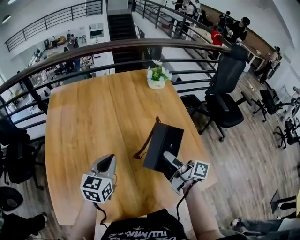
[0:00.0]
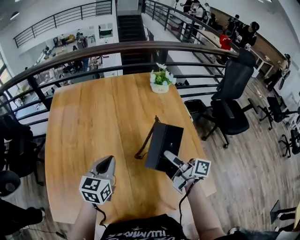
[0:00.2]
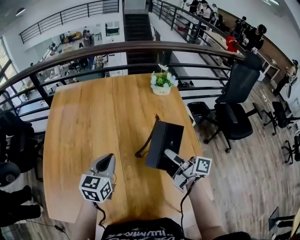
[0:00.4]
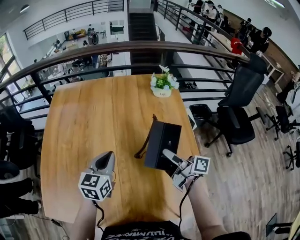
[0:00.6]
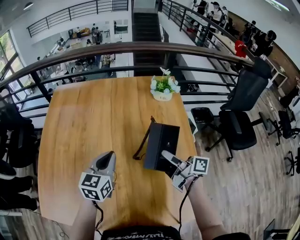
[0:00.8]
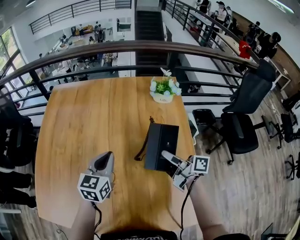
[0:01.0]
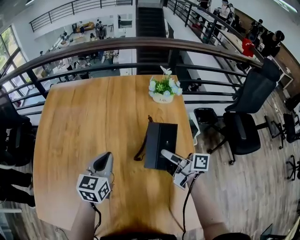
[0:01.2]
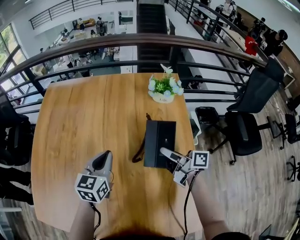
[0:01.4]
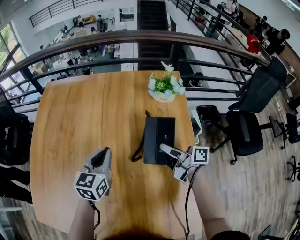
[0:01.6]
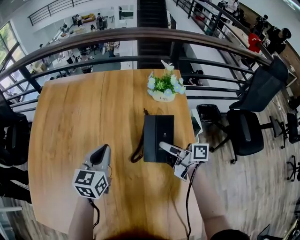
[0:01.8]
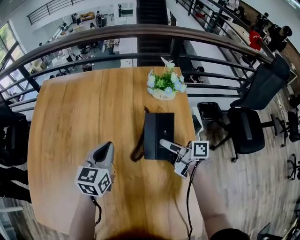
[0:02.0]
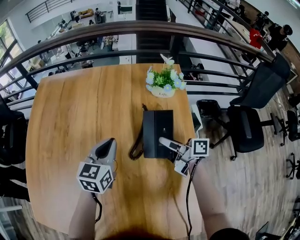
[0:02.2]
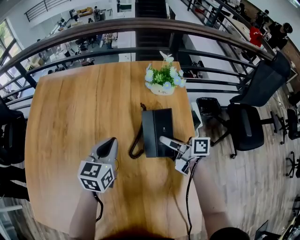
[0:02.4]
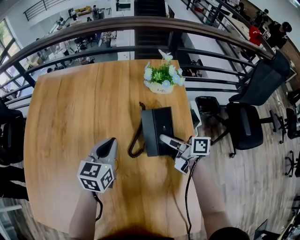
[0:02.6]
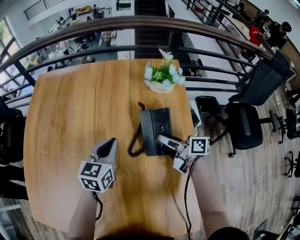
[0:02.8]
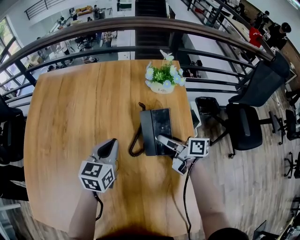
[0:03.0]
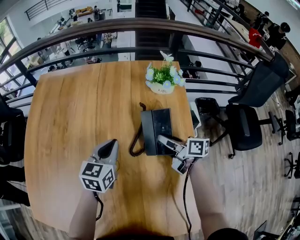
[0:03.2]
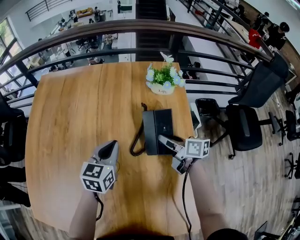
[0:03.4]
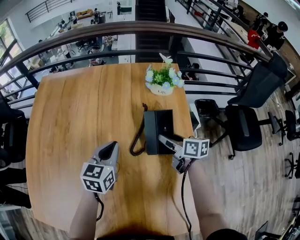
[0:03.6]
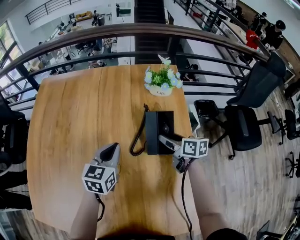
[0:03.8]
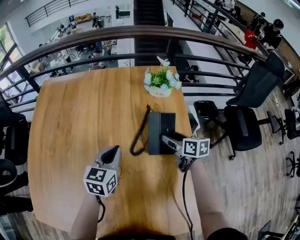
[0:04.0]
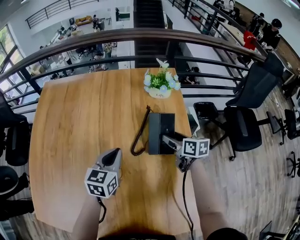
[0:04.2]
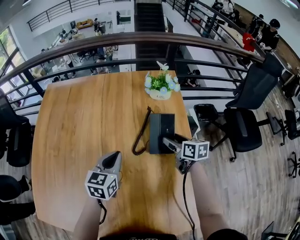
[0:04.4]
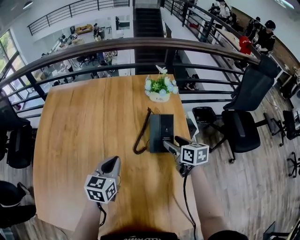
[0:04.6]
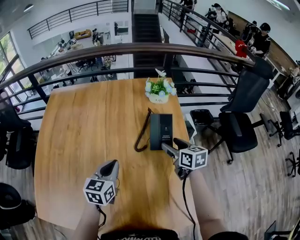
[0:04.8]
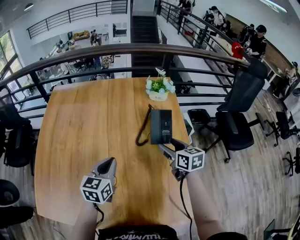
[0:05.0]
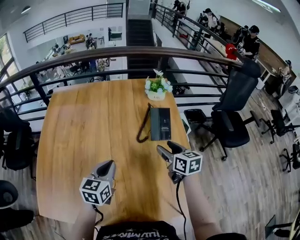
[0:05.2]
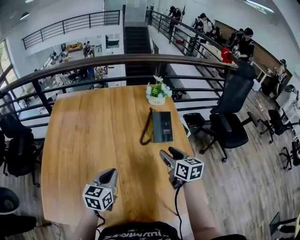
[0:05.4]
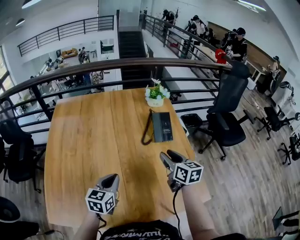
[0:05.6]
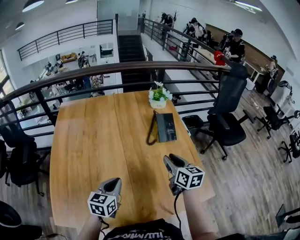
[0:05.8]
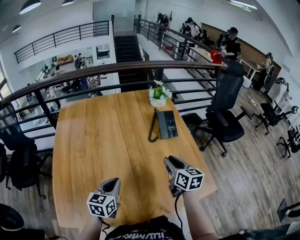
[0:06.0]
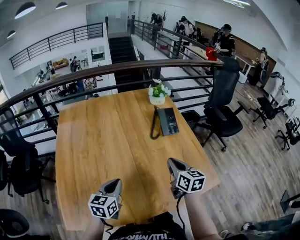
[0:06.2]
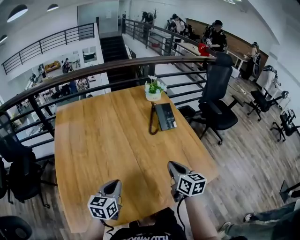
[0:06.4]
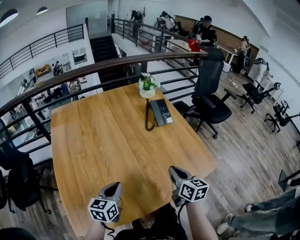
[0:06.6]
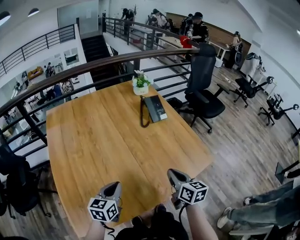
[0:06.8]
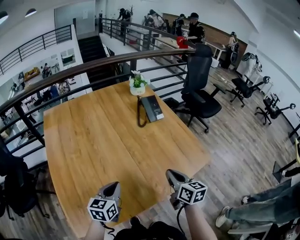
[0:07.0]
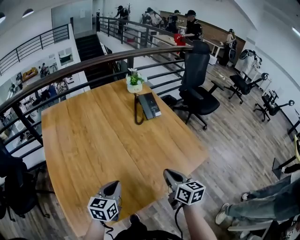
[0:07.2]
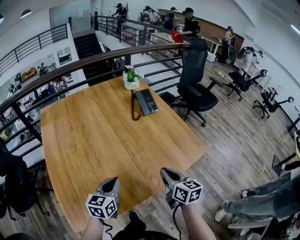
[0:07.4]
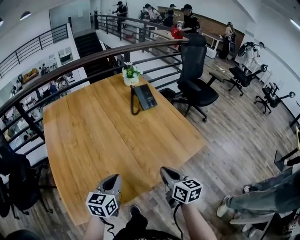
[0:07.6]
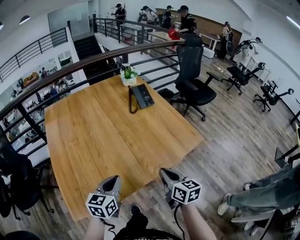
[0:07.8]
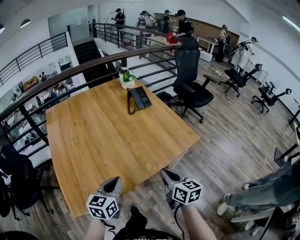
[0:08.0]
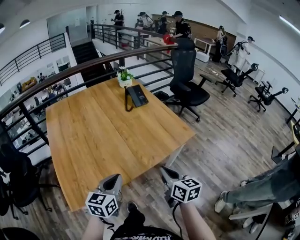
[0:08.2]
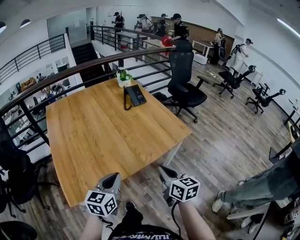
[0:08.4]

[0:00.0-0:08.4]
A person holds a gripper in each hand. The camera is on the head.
0:00.0 to 0:01.4: The two grippers go approximately 20 cm forward and to the right. The right gripper changes its angle by some 30 degrees.
0:01.4 to 0:02.8: The right gripper shifts some 5 cm forward. The left gripper is displaced to the right by about 5 cm.
0:02.8 to 0:04.2: The left gripper shifts by about 5 cm. The right gripper shifts by about 5 cm, turns by approximately 30 degrees, and opens its fingers.
0:04.2 to 0:05.6: The right gripper is displaced backward, upward and to the left by approximately 25 cm, changes its angle by roughly 20 degrees, and closes, while the left gripper is displaced backward and to the left by approximately 25 cm.
0:05.6 to 0:07.0: The right gripper shifts roughly 25 cm backward, turns by approximately 20 degrees, and closes; the left gripper is displaced backward and to the left by about 15 cm.
0:07.0 to 0:08.4: The right gripper goes approximately 20 cm backward. The left gripper heads backward, upward and to the right, covering some 20 cm.

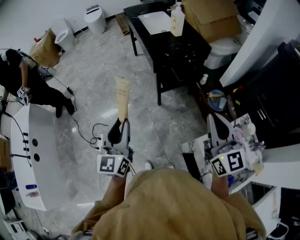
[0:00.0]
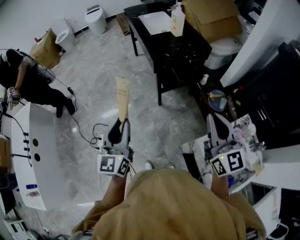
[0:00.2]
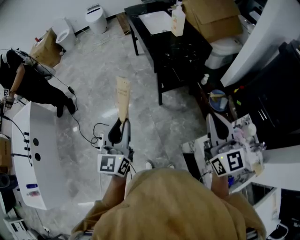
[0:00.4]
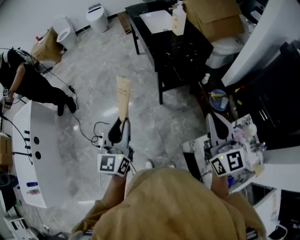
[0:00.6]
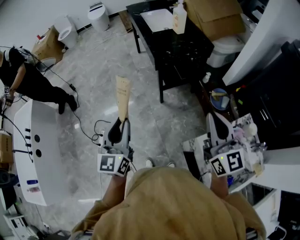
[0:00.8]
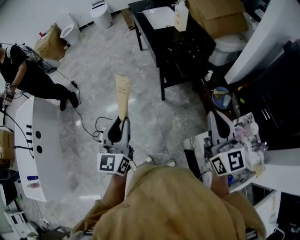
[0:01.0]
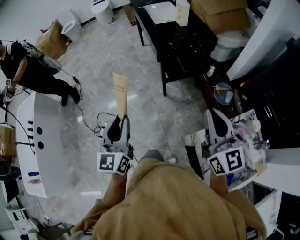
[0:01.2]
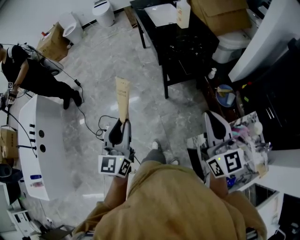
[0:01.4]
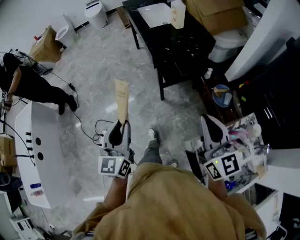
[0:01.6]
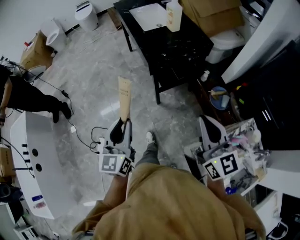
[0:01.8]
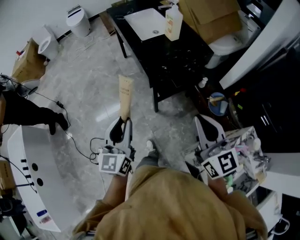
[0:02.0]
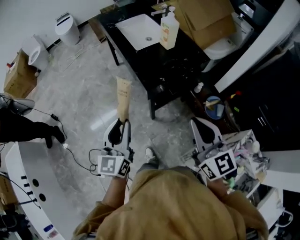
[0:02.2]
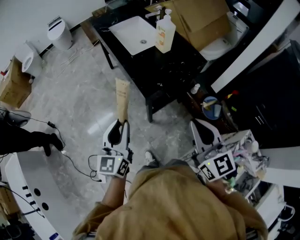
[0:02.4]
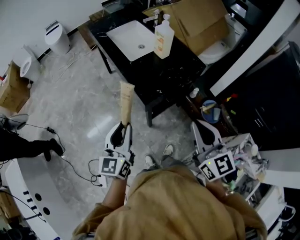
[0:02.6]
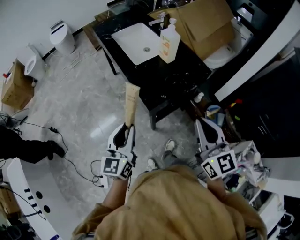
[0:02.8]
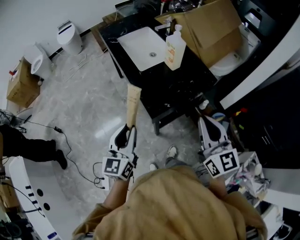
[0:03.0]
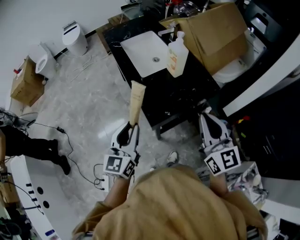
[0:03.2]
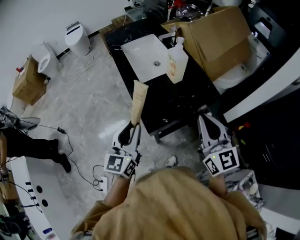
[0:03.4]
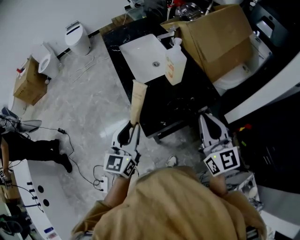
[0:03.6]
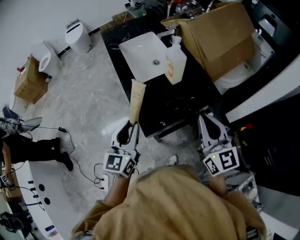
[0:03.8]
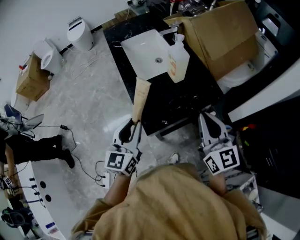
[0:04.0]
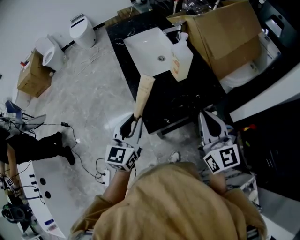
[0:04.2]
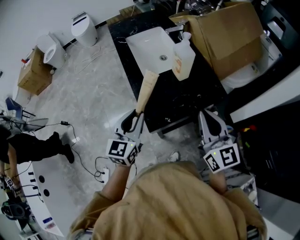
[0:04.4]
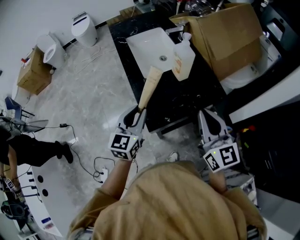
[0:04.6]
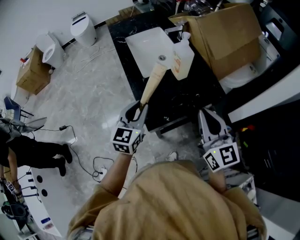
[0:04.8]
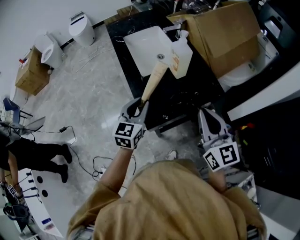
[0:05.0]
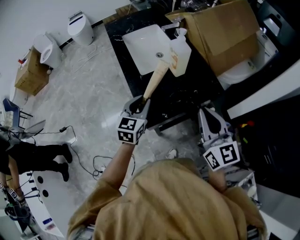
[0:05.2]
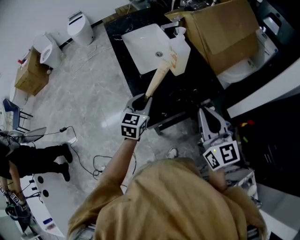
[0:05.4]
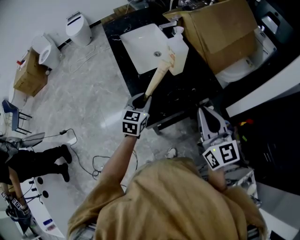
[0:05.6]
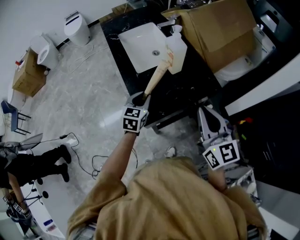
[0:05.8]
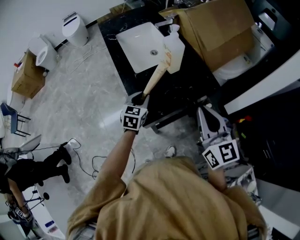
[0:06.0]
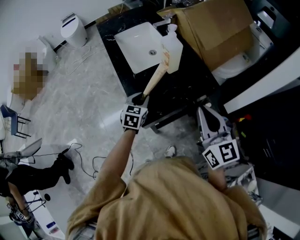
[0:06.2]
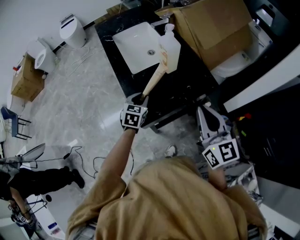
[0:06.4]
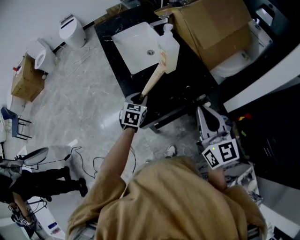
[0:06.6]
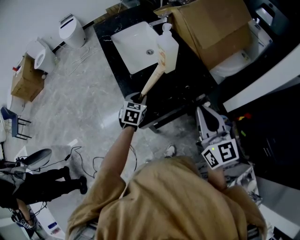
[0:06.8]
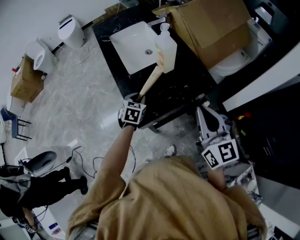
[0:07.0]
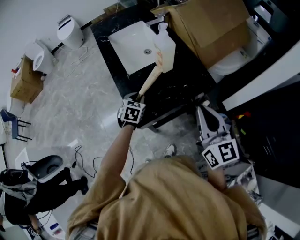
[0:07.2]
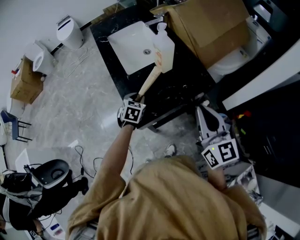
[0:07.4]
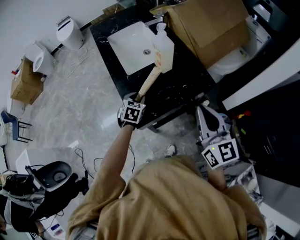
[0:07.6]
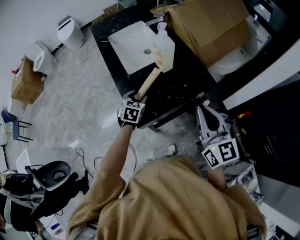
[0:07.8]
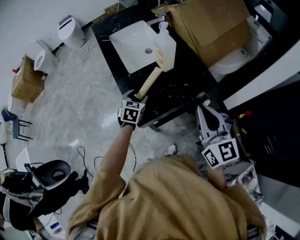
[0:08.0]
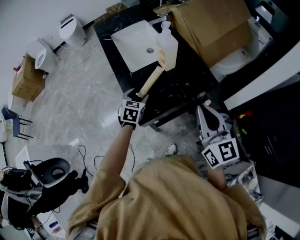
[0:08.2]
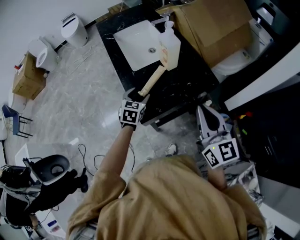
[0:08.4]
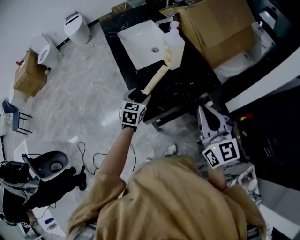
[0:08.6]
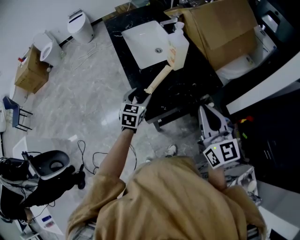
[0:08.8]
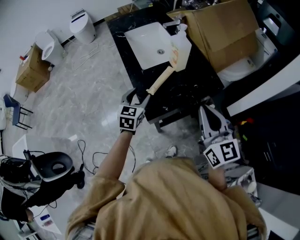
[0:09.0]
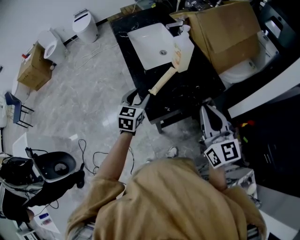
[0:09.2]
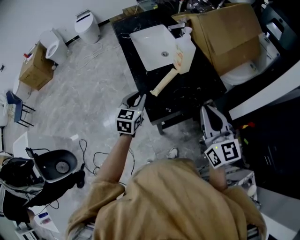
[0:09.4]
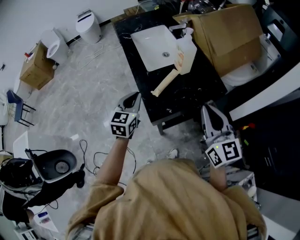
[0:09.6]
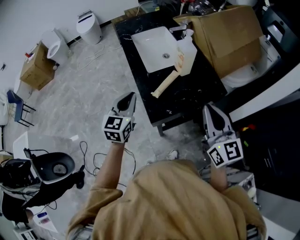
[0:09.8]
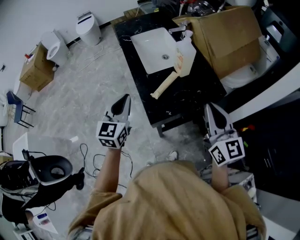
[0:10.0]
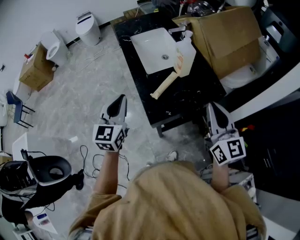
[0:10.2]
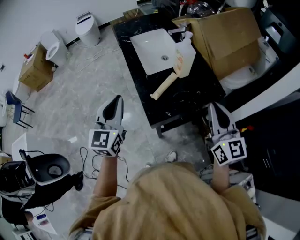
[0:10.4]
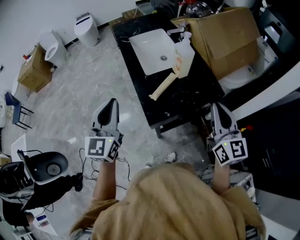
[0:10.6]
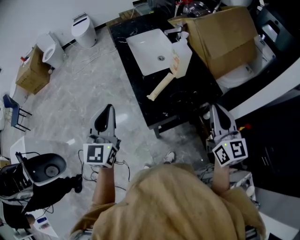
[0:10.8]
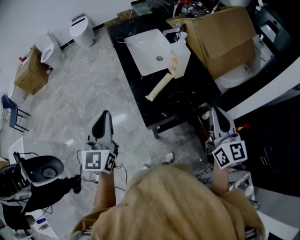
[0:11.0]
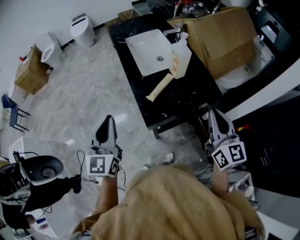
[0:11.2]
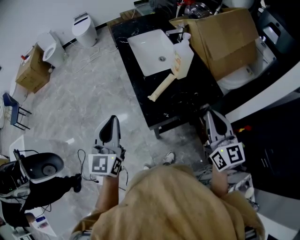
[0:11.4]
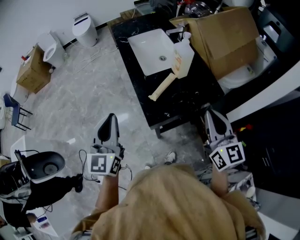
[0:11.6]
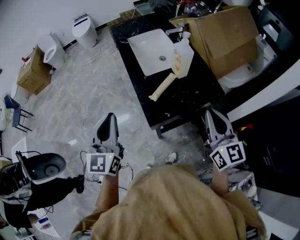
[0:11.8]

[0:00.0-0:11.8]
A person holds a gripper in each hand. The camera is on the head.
0:00.0 to 0:01.4: The grippers move only a little.
0:01.4 to 0:03.0: Both grippers are carried forward, about 40 cm.
0:03.0 to 0:04.4: The right gripper goes approximately 15 cm forward, while the left gripper is displaced forward and to the right by approximately 15 cm.
0:04.4 to 0:06.0: The left gripper travels downward and forward by approximately 15 cm, and changes its angle by roughly 20 degrees.
0:06.0 to 0:07.4: The left gripper heads downward, covering some 5 cm.
0:07.4 to 0:08.8: The right gripper changes place by about 5 cm; the left gripper heads upward, covering some 10 cm, and opens its fingers.
0:08.8 to 0:10.4: The left gripper is displaced upward and to the left by about 20 cm, changes its angle by approximately 30 degrees, and closes its fingers.
0:10.4 to 0:11.8: The left gripper heads backward, covering roughly 5 cm.

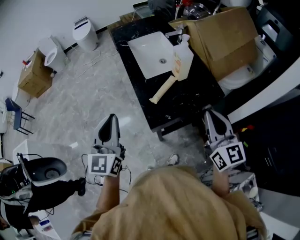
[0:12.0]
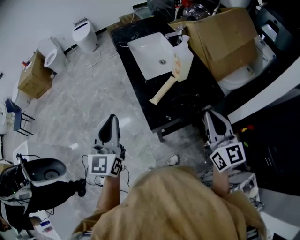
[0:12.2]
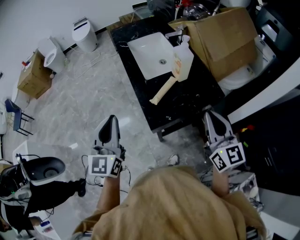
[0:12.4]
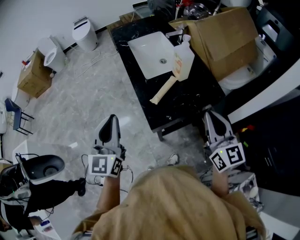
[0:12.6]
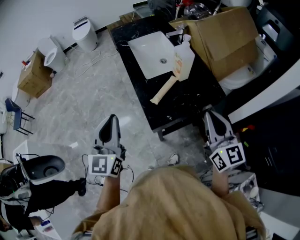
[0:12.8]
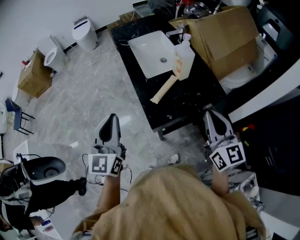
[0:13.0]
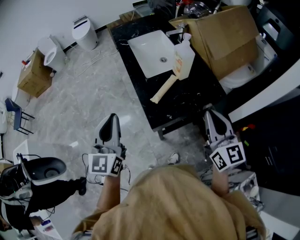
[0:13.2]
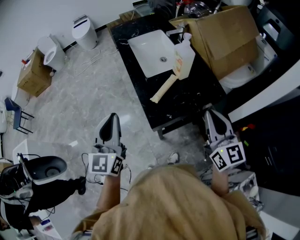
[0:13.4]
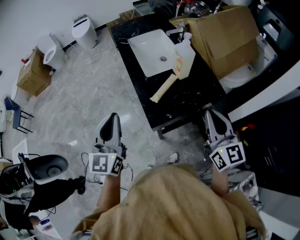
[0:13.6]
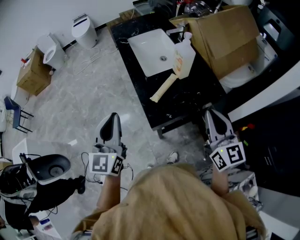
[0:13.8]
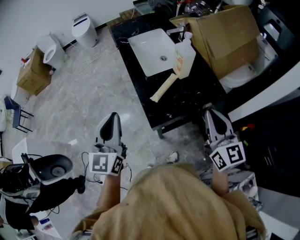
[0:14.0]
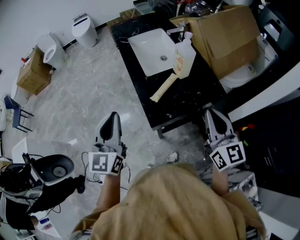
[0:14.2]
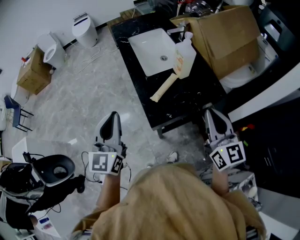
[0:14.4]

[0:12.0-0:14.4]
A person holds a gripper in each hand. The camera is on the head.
0:12.0 to 0:14.4: The two grippers keep their place.

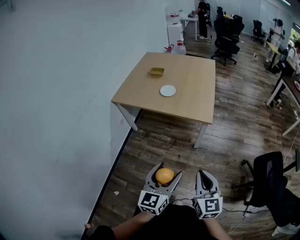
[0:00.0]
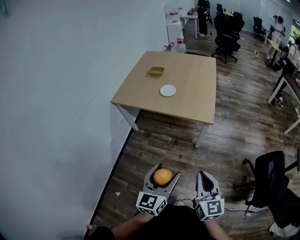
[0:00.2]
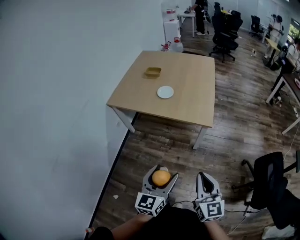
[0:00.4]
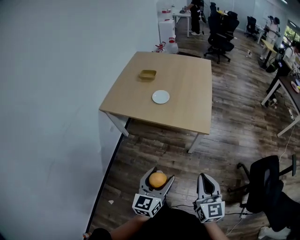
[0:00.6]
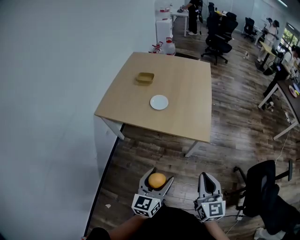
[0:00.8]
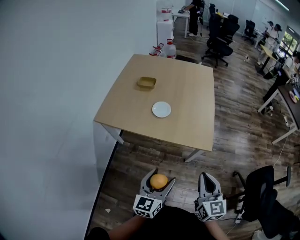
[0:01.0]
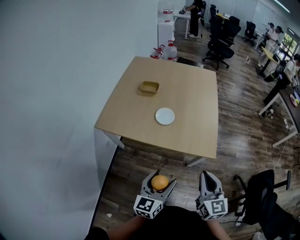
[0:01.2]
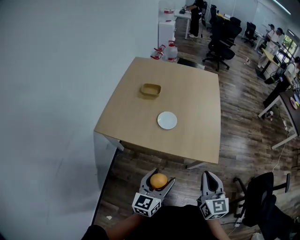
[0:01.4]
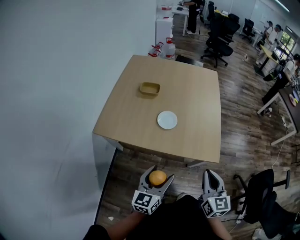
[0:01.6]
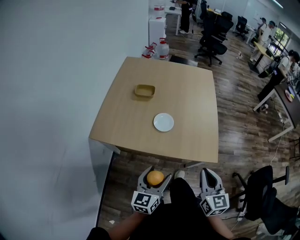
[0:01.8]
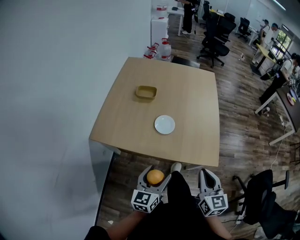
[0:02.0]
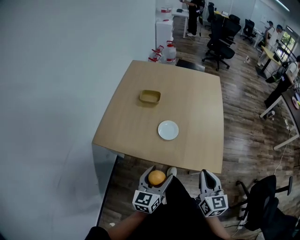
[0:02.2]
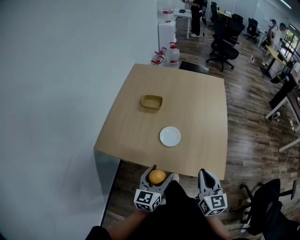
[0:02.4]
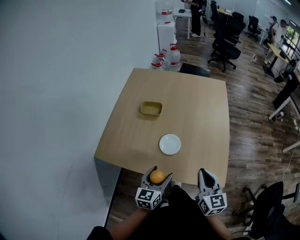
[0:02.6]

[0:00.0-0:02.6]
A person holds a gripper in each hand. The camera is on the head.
0:00.0 to 0:01.2: The two grippers go about 30 cm forward.
0:01.2 to 0:02.6: Both grippers move forward, roughly 20 cm.
